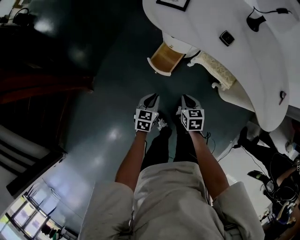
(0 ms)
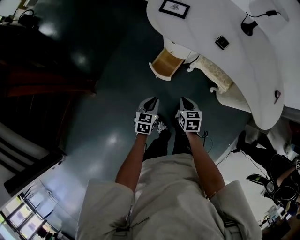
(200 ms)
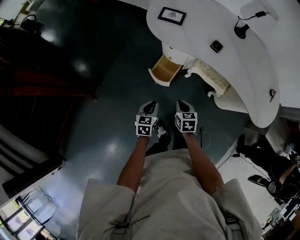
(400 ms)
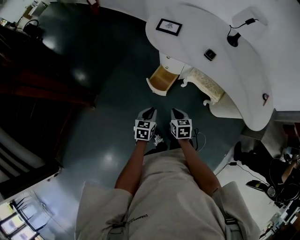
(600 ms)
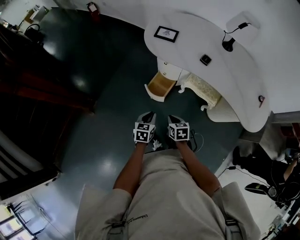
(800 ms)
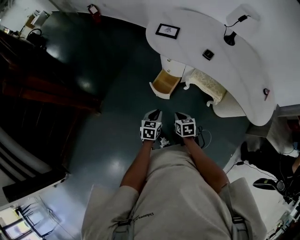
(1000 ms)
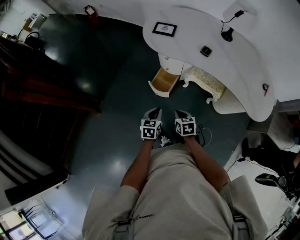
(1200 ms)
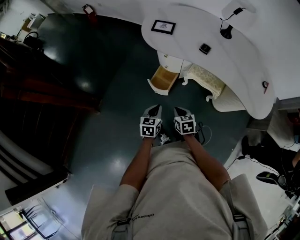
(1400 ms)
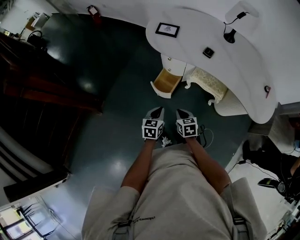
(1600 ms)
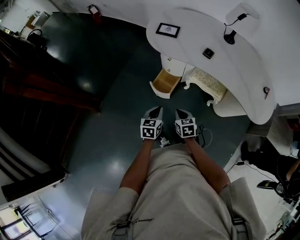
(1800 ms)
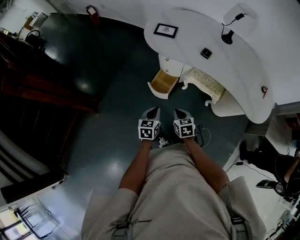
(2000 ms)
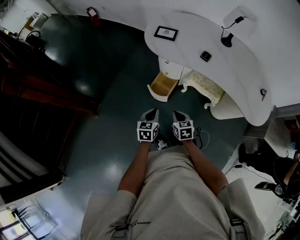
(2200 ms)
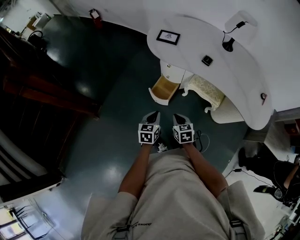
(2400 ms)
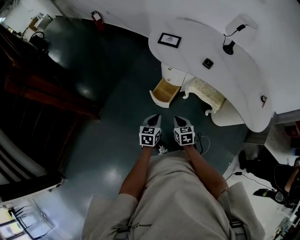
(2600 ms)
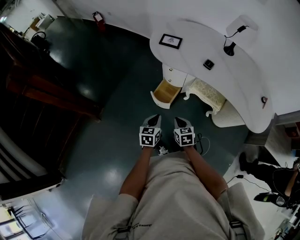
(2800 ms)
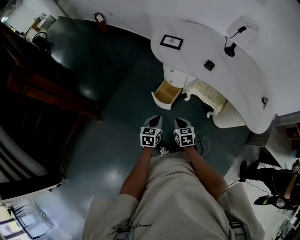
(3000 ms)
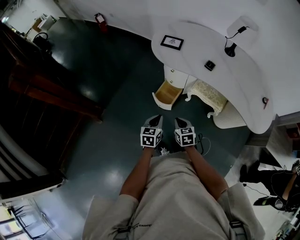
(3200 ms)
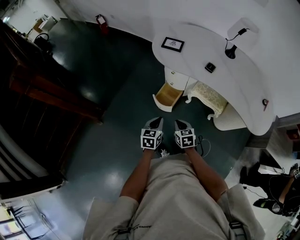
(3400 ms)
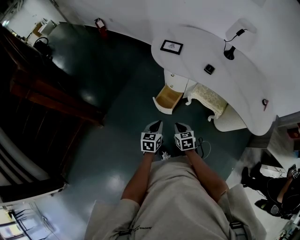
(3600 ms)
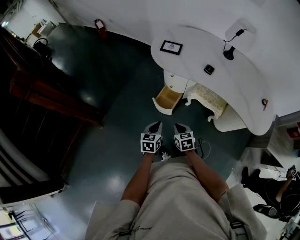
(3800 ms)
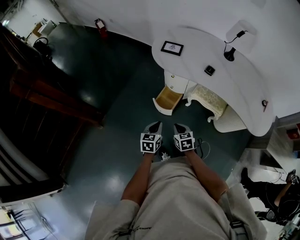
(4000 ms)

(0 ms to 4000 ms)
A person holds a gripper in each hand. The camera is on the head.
0 ms - 1400 ms: The right gripper heads backward and upward, covering about 10 cm. The left gripper shifts about 10 cm upward and backward.
1400 ms - 4000 ms: The grippers stay close to where they were, moving slightly.

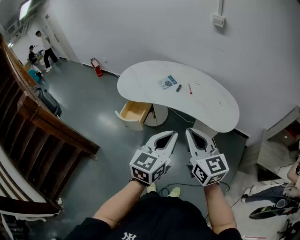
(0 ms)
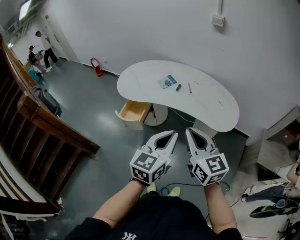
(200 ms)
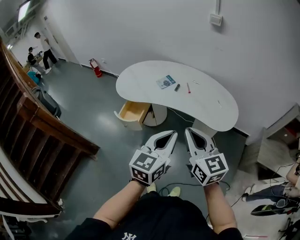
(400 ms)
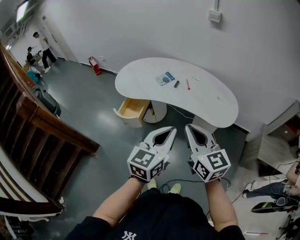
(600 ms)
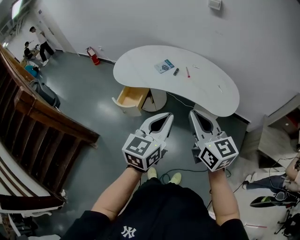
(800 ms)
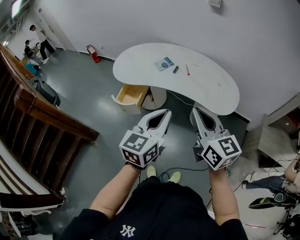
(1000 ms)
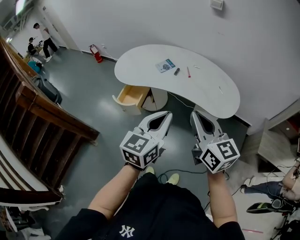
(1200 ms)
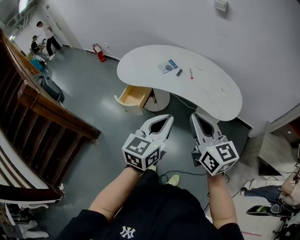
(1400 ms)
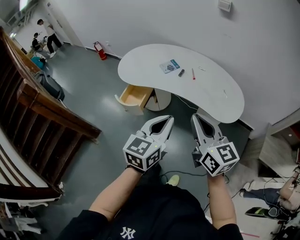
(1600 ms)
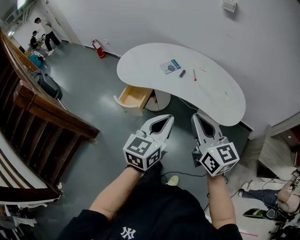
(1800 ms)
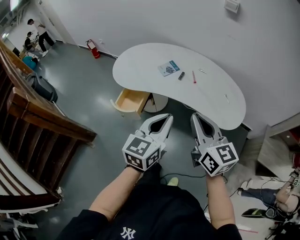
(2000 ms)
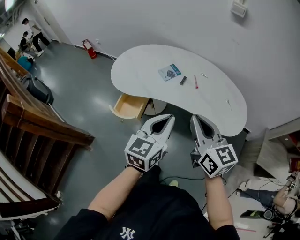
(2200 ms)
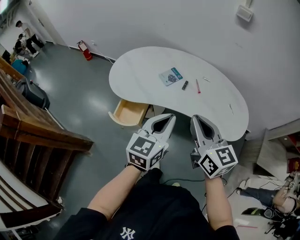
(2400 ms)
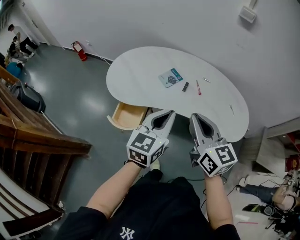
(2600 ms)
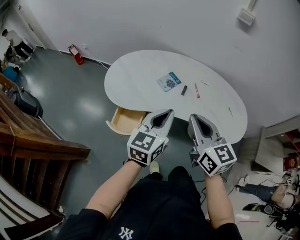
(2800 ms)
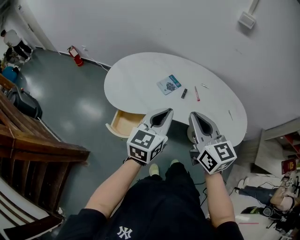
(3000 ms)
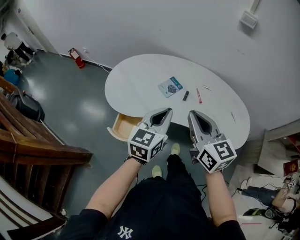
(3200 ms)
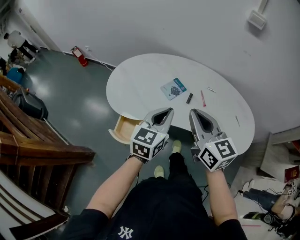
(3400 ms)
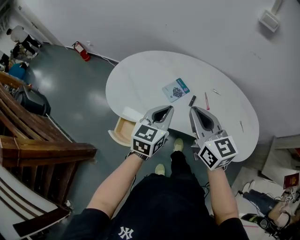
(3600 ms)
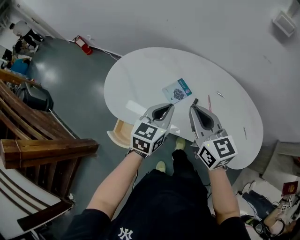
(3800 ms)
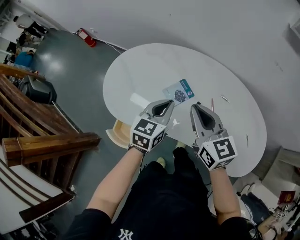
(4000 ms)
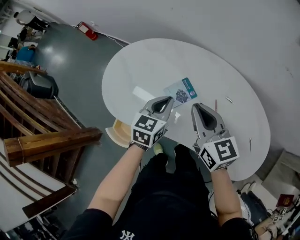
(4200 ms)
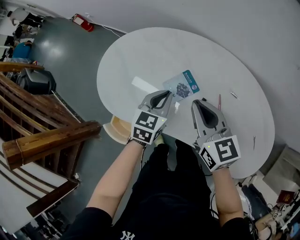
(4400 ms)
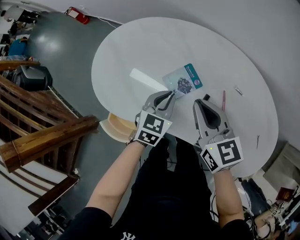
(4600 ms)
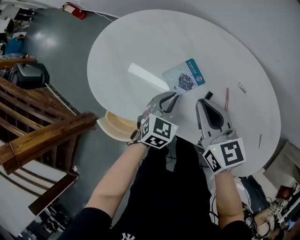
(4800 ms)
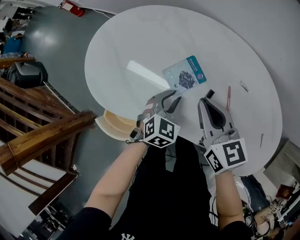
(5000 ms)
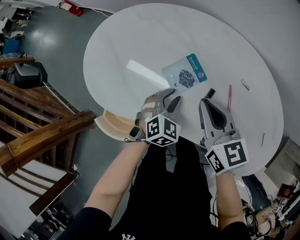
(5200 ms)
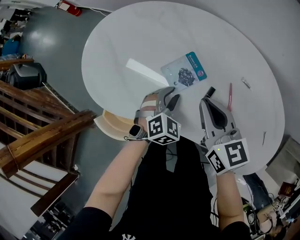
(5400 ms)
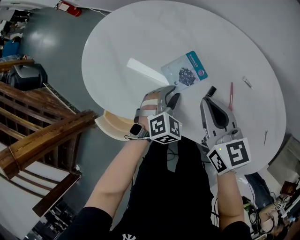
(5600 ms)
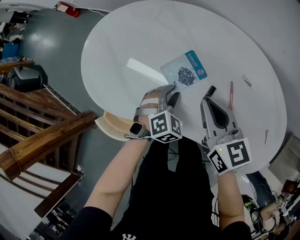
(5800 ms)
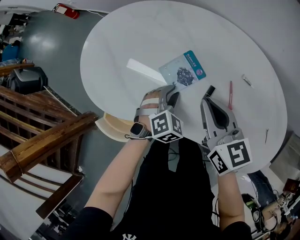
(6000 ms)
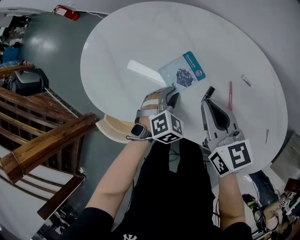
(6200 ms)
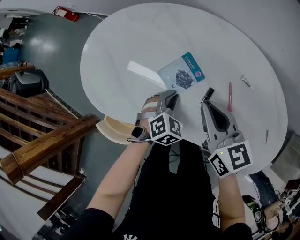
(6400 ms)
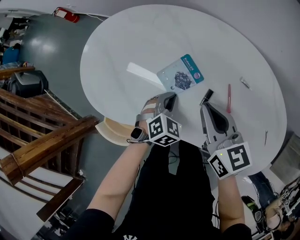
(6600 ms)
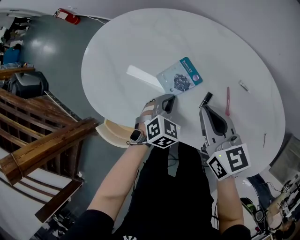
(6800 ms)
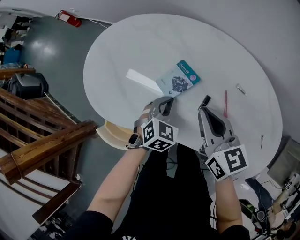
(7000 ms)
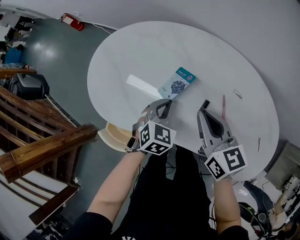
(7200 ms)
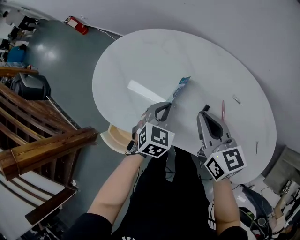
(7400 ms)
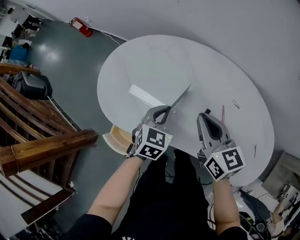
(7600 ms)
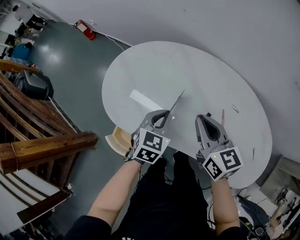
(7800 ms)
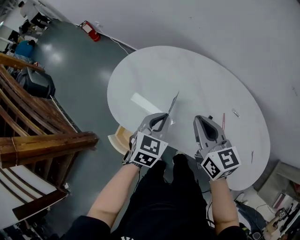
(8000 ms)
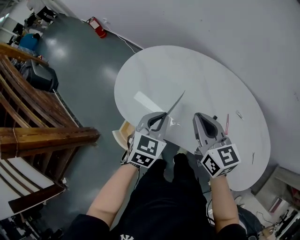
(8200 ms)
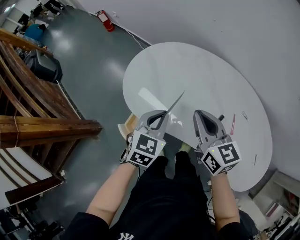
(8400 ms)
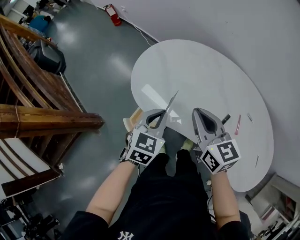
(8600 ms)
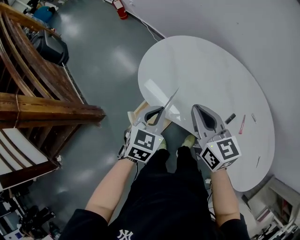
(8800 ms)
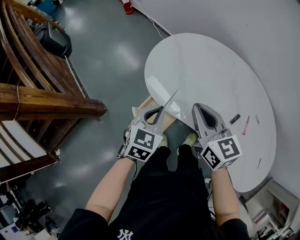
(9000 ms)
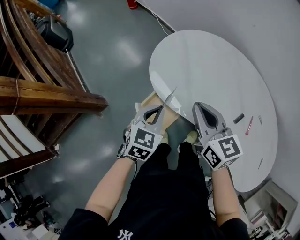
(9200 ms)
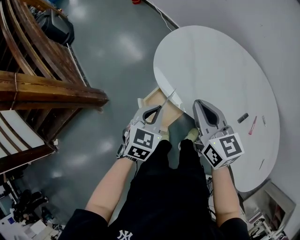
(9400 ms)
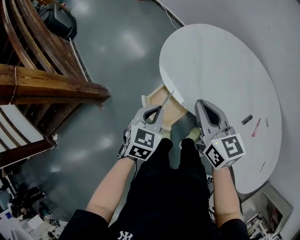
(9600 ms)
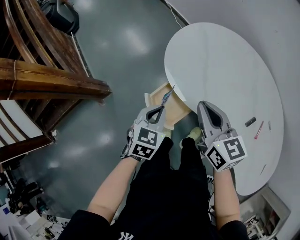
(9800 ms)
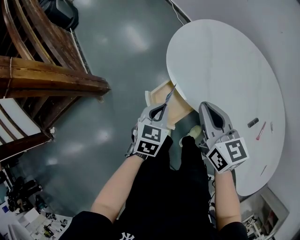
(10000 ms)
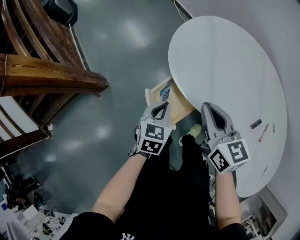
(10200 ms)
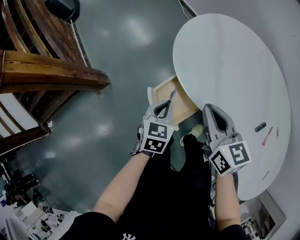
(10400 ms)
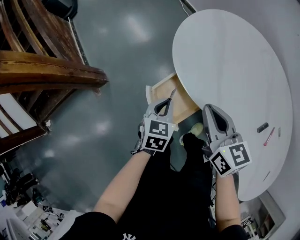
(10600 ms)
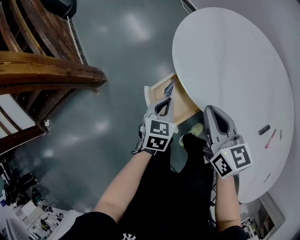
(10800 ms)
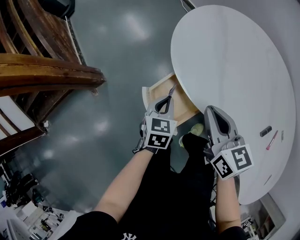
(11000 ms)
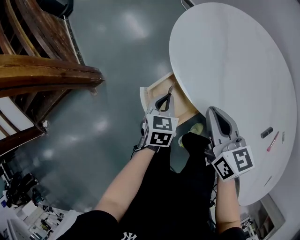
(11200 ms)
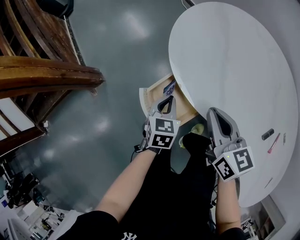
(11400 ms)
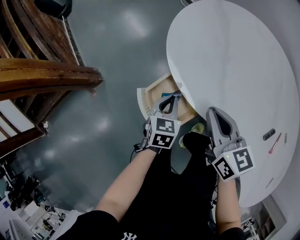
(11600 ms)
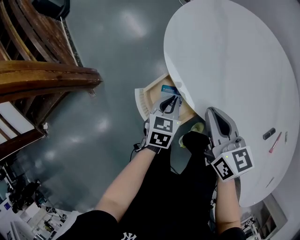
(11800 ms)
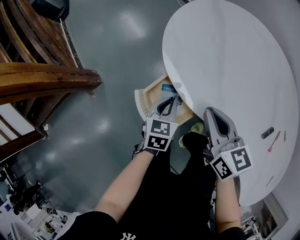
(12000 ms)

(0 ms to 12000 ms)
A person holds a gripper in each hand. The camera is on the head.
0 ms - 1600 ms: The right gripper moves approximately 5 cm.
1600 ms - 3000 ms: The two grippers go roughly 30 cm forward and to the left.
3000 ms - 4400 ms: Both grippers travel together forward and downward, approximately 35 cm. The left gripper swivels approximately 30 degrees.
4400 ms - 6000 ms: The right gripper heads downward, covering approximately 10 cm. The left gripper goes approximately 15 cm downward, changes its angle by roughly 50 degrees, and opens its fingers.
6000 ms - 7600 ms: The left gripper moves upward, some 15 cm, rotates roughly 30 degrees, and closes up; the right gripper goes roughly 5 cm upward.
7600 ms - 9000 ms: The left gripper is displaced to the left and backward by roughly 25 cm. Meanwhile the right gripper travels to the left by approximately 20 cm, and turns by roughly 20 degrees.
9000 ms - 10400 ms: The two grippers go some 20 cm downward and to the left. The left gripper turns by roughly 20 degrees.
10400 ms - 12000 ms: The two grippers go roughly 10 cm downward.

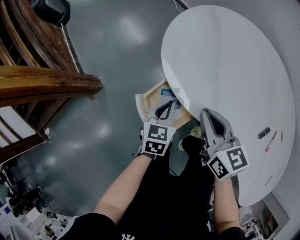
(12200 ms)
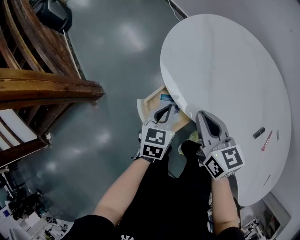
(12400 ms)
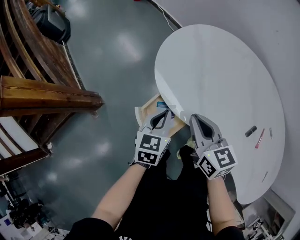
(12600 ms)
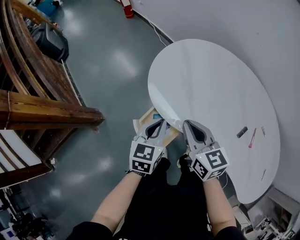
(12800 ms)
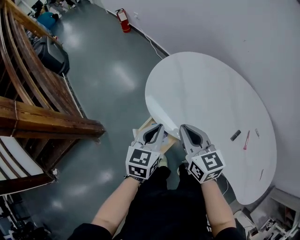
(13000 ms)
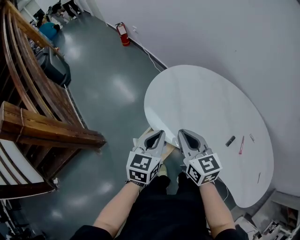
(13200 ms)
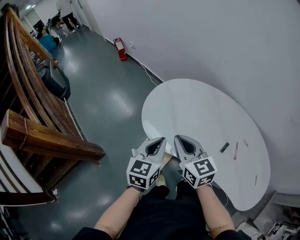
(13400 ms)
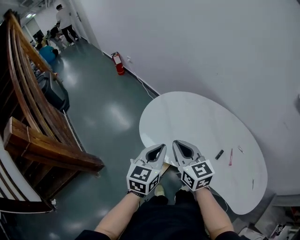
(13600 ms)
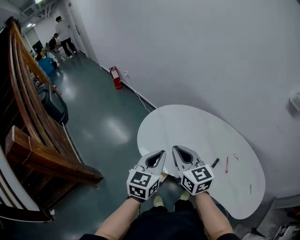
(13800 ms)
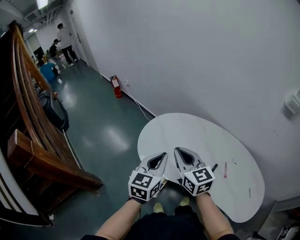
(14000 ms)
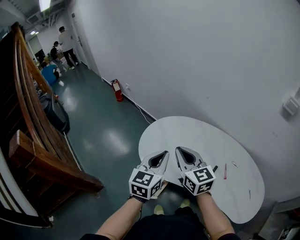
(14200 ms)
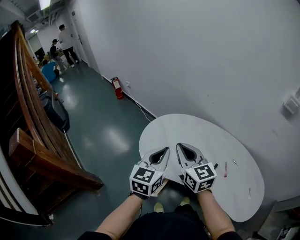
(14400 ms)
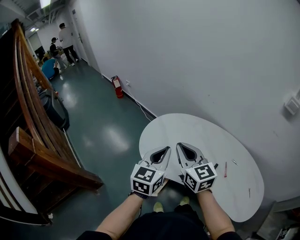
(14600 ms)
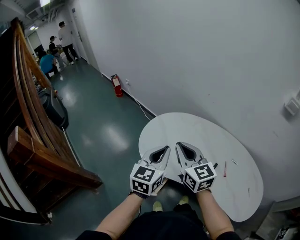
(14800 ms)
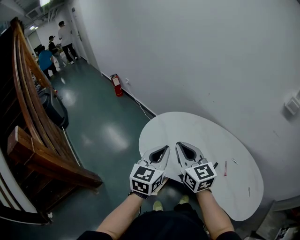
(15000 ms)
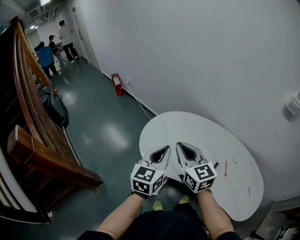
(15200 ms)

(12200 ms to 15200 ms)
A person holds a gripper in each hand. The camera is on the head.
12200 ms - 13800 ms: Both grippers travel together upward, some 30 cm. The right gripper rotates approximately 20 degrees. The left gripper swivels roughly 30 degrees.
13800 ms - 15200 ms: The right gripper ends up roughly 5 cm from where it was.

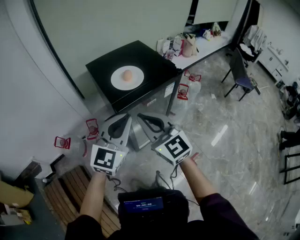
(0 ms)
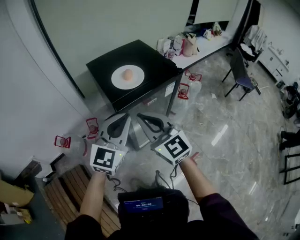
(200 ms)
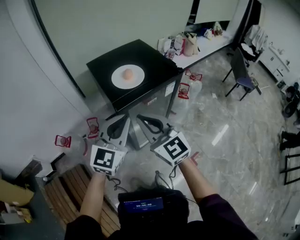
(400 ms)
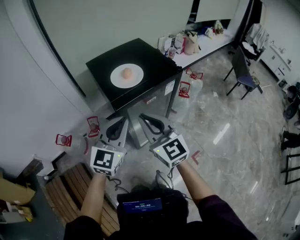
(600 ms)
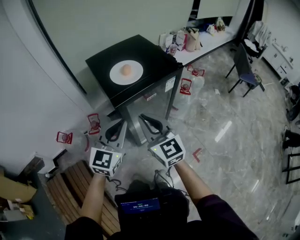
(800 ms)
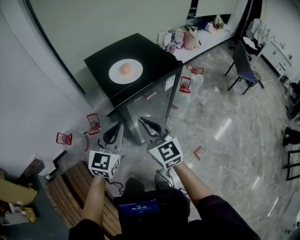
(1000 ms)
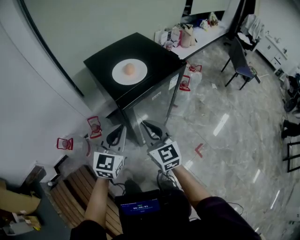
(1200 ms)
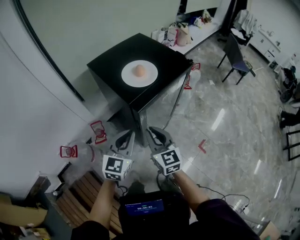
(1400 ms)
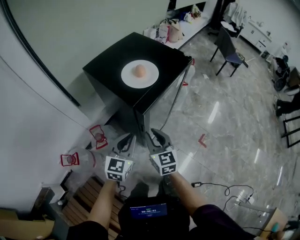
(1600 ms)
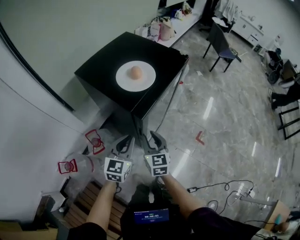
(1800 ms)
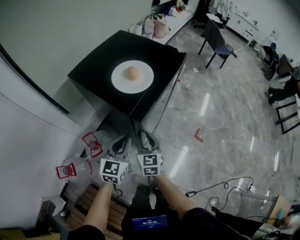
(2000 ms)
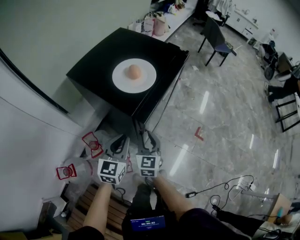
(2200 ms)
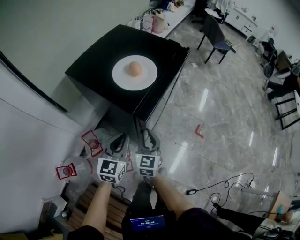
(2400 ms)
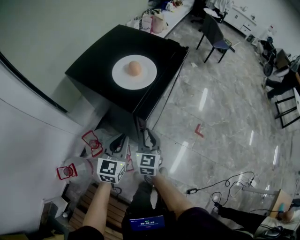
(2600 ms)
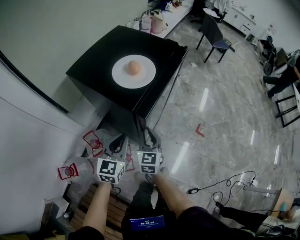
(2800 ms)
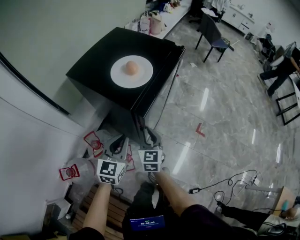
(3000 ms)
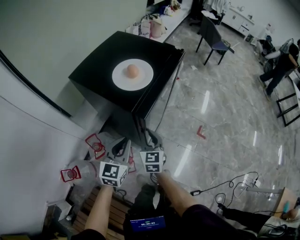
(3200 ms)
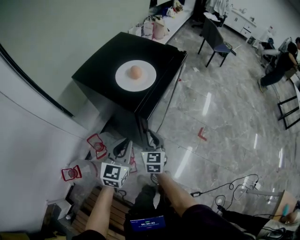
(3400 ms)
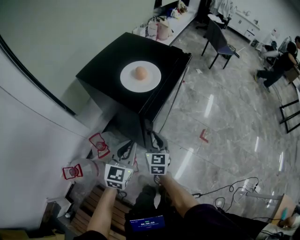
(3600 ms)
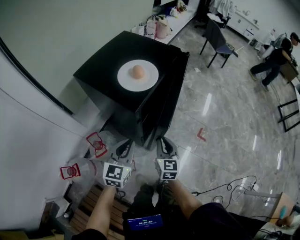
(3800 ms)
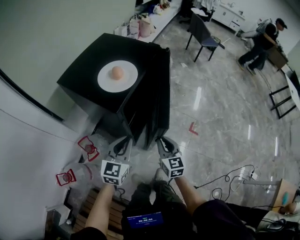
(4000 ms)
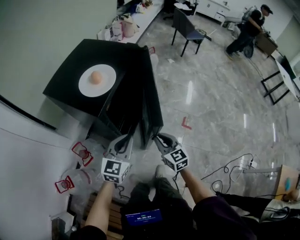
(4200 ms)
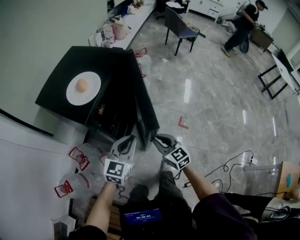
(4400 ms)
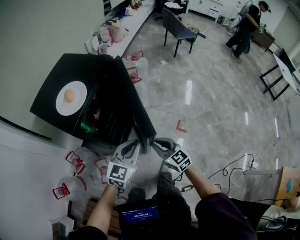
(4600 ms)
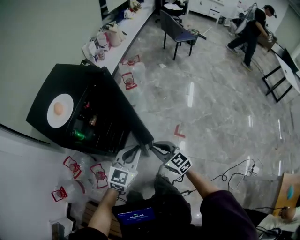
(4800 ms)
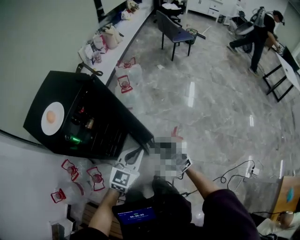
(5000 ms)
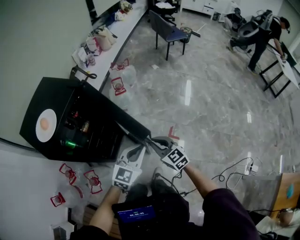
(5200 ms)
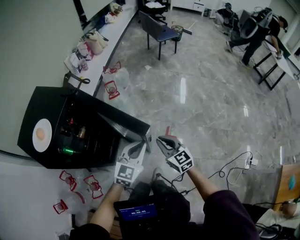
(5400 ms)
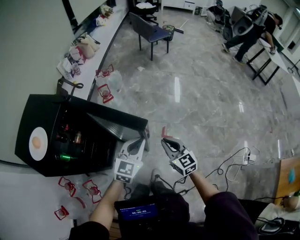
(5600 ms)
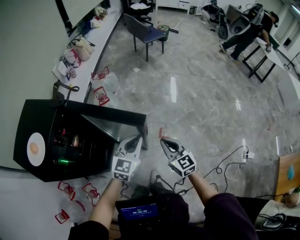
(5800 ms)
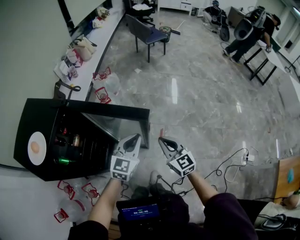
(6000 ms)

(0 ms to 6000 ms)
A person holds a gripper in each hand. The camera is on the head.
0 ms - 1600 ms: The right gripper shifts about 20 cm downward, and rotates approximately 40 degrees, while the left gripper moves downward and to the left, approximately 20 cm, and turns by some 20 degrees.
1600 ms - 3000 ms: The right gripper shifts some 10 cm downward, and turns by roughly 20 degrees.
3000 ms - 4400 ms: The grippers both shift to the right by roughly 20 cm. The right gripper swivels some 20 degrees.
4400 ms - 6000 ms: The left gripper is displaced to the right and forward by approximately 35 cm; the right gripper goes approximately 30 cm to the right.
